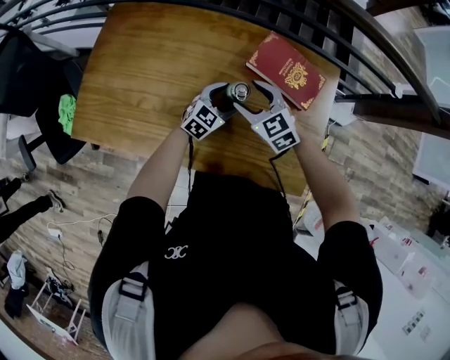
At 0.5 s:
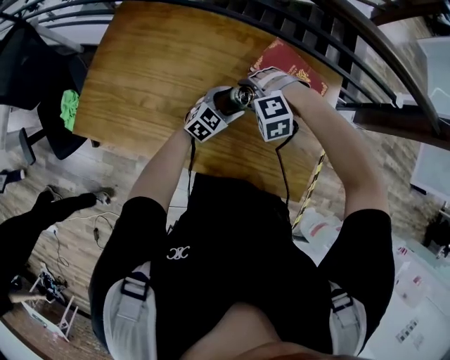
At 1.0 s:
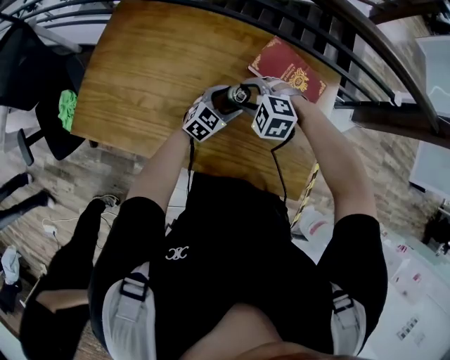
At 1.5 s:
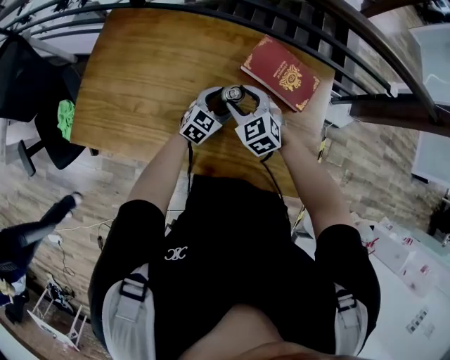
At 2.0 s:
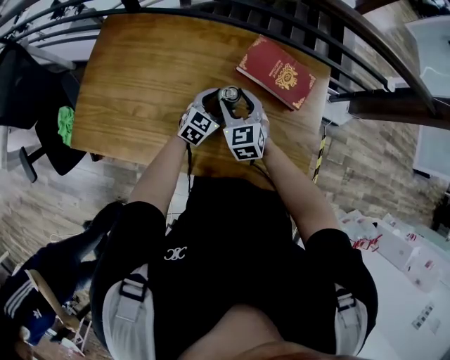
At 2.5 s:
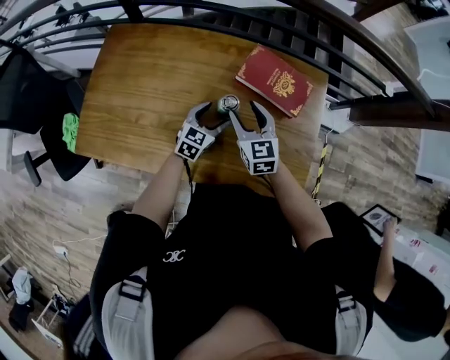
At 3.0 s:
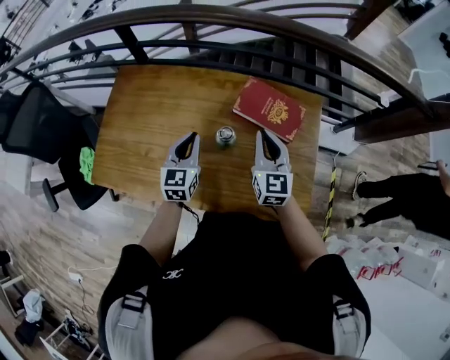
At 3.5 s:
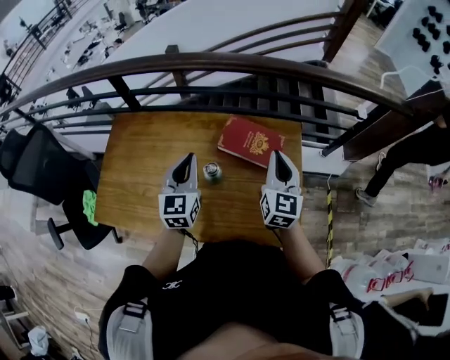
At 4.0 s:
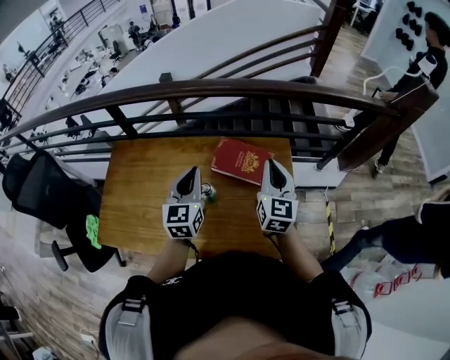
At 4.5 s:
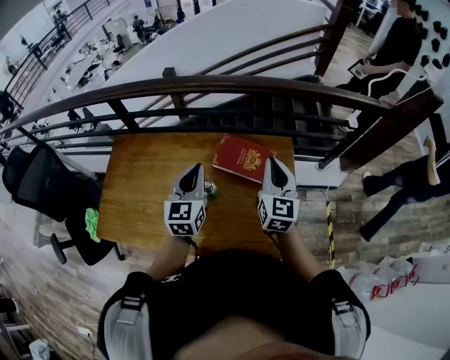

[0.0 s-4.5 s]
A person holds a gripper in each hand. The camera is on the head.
0.0 to 2.0 s: The right gripper changes its angle by some 20 degrees.
2.0 to 4.5 s: The right gripper moves upward and to the right, approximately 30 cm, turns by about 40 degrees, and closes. The left gripper moves upward, some 30 cm, swivels roughly 30 degrees, and closes up.

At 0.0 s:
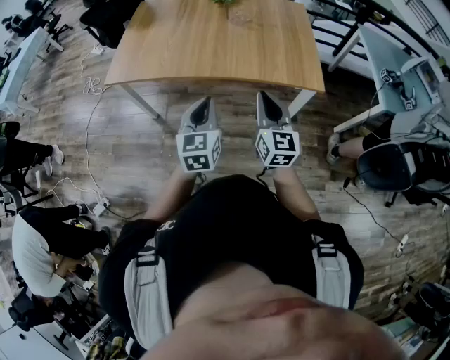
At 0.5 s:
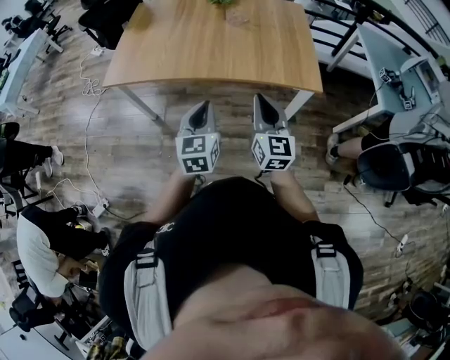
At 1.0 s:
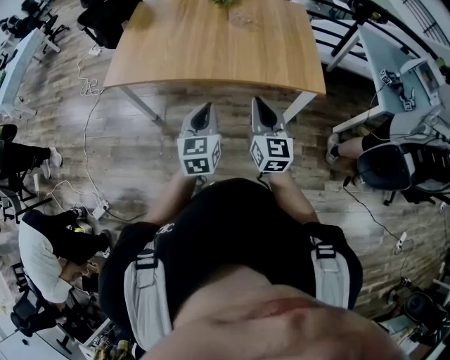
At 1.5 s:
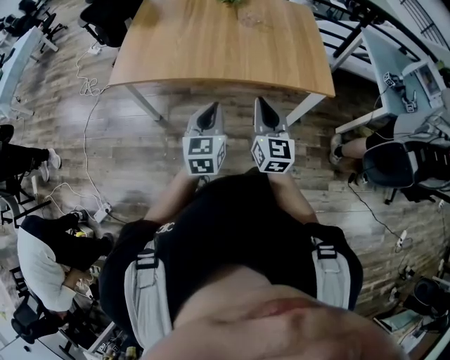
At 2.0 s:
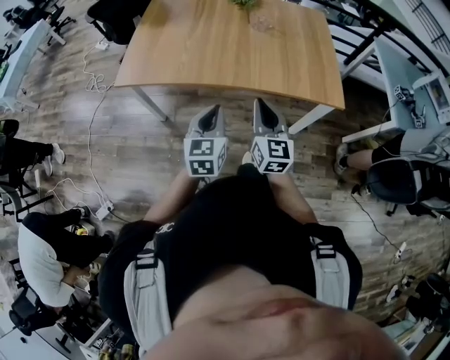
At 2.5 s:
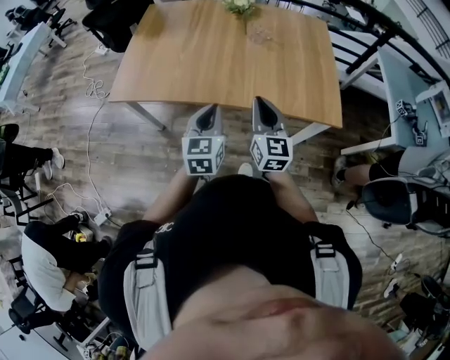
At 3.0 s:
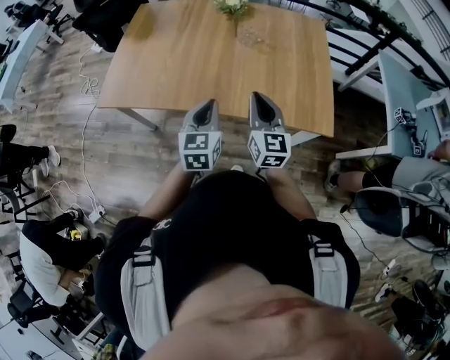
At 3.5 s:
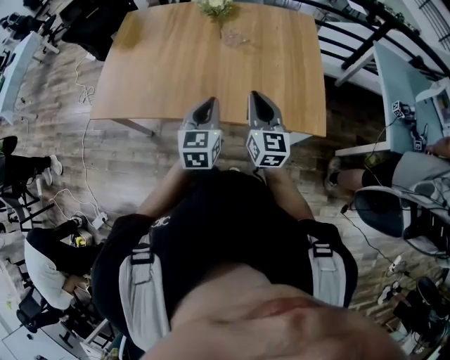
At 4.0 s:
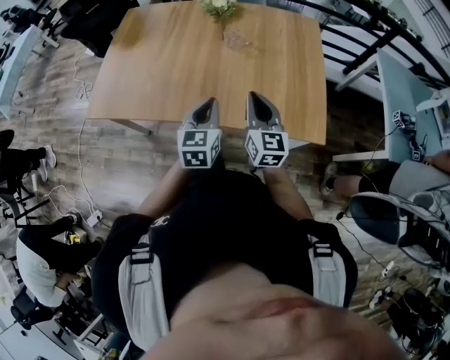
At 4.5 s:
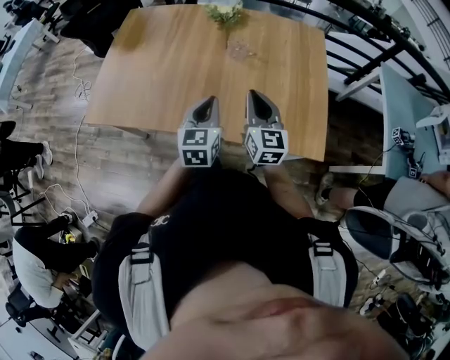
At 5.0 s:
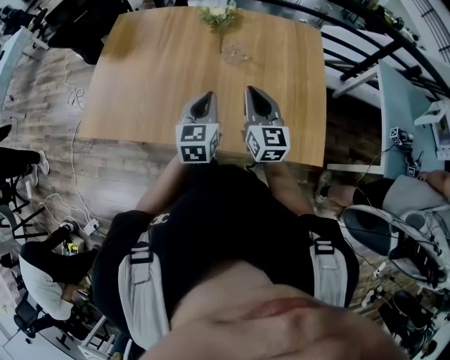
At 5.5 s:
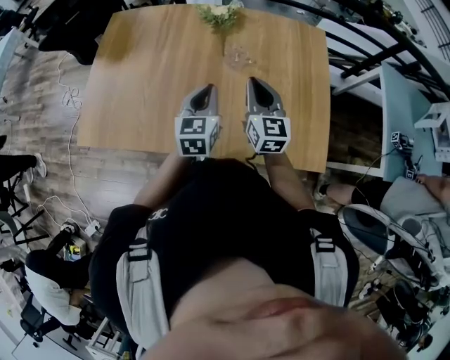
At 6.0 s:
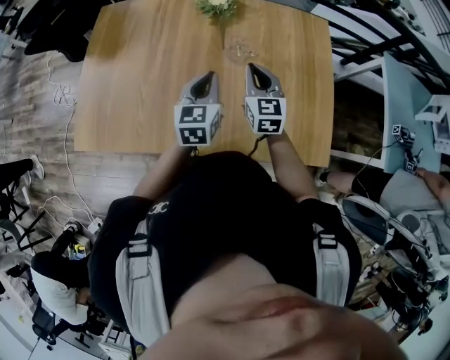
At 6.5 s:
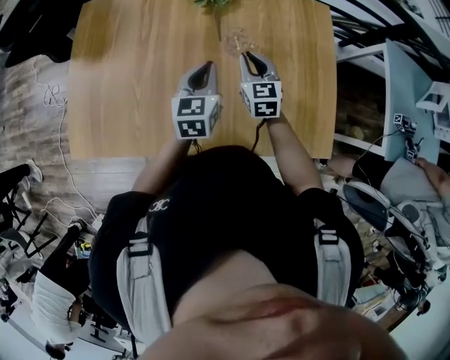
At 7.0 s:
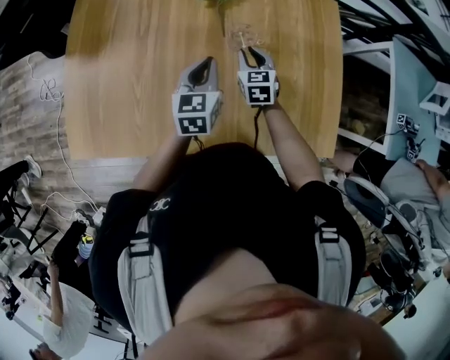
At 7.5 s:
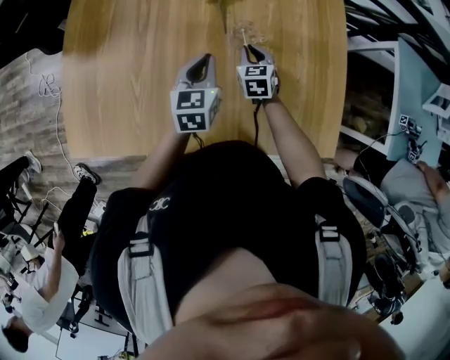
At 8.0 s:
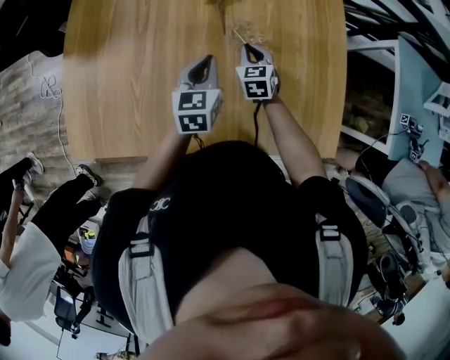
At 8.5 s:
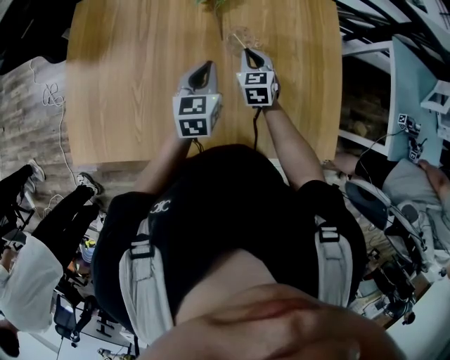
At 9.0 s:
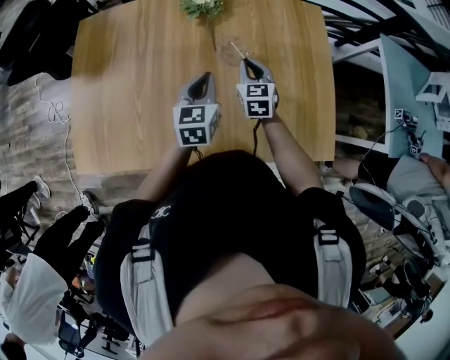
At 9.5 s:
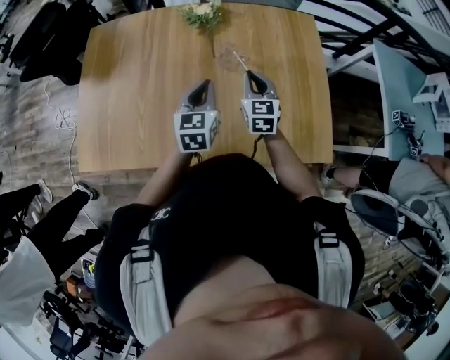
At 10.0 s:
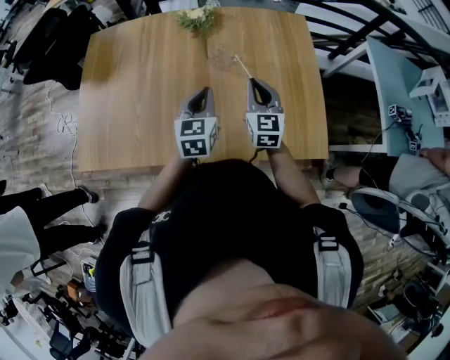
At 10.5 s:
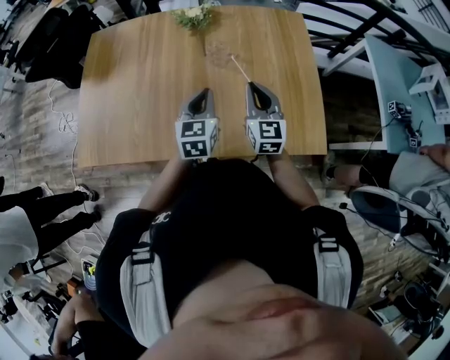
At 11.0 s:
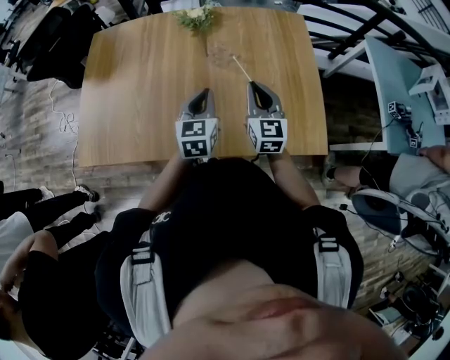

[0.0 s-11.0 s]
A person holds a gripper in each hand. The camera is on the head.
0.0 to 2.0 s: The two grippers go approximately 10 cm to the left and forward.
2.0 to 3.5 s: Both grippers move forward and to the right, approximately 25 cm.
3.5 to 5.5 s: Both grippers move forward, about 25 cm.
5.5 to 7.5 s: The right gripper goes roughly 30 cm downward and forward, and tilts its fingers roughly 30 degrees downward, while the left gripper moves forward and downward, roughly 15 cm.
7.5 to 9.0 s: The right gripper shifts roughly 10 cm upward, while the left gripper changes place by approximately 5 cm.
9.0 to 11.0 s: The left gripper is displaced backward and to the right by roughly 15 cm, while the right gripper shifts approximately 20 cm backward, upward and to the right.

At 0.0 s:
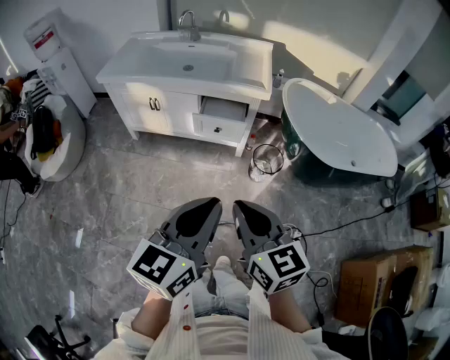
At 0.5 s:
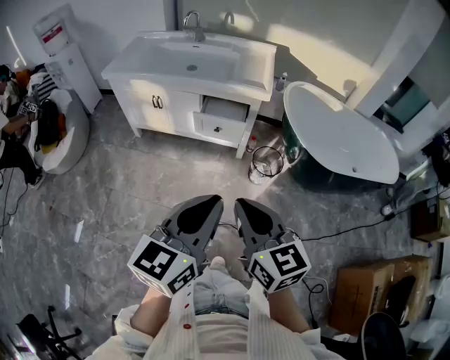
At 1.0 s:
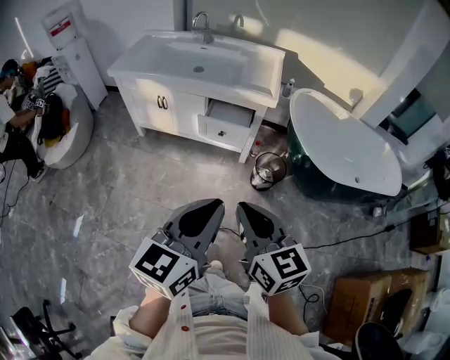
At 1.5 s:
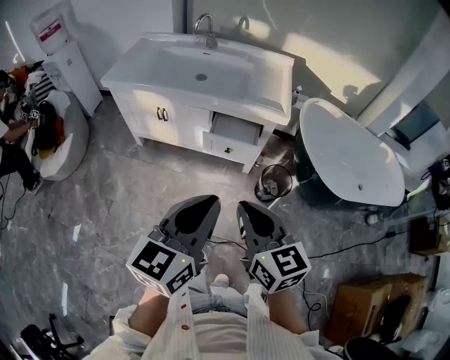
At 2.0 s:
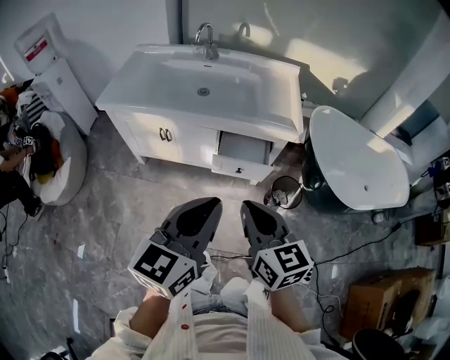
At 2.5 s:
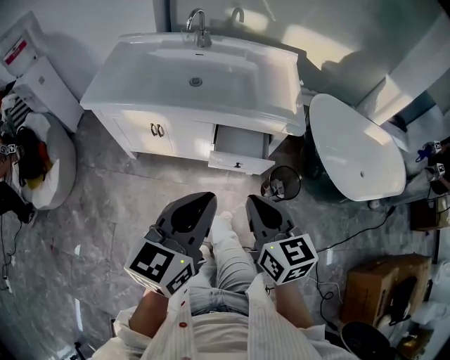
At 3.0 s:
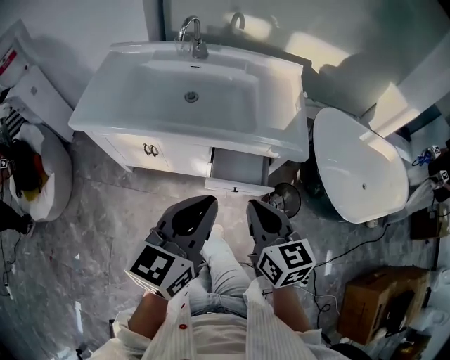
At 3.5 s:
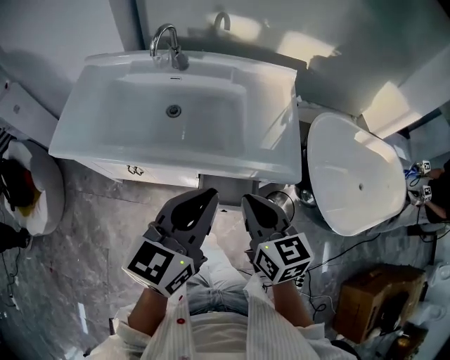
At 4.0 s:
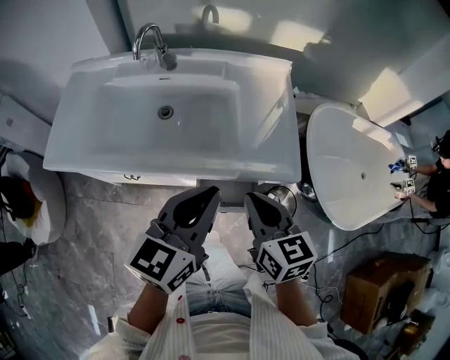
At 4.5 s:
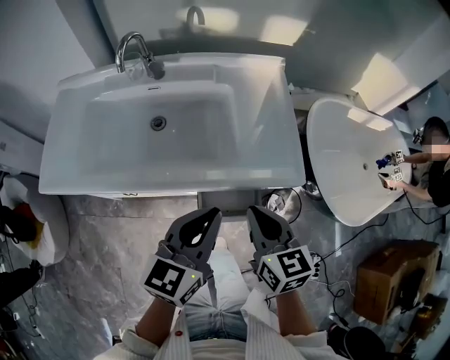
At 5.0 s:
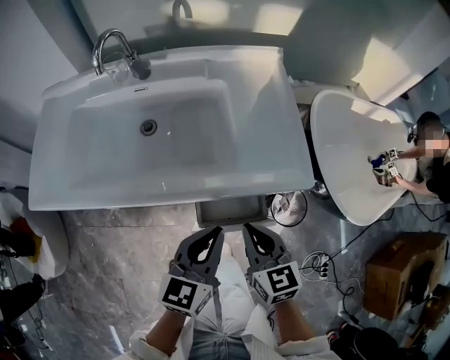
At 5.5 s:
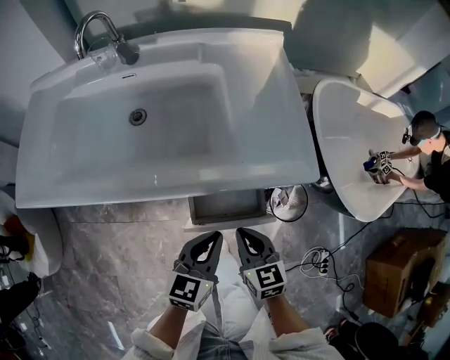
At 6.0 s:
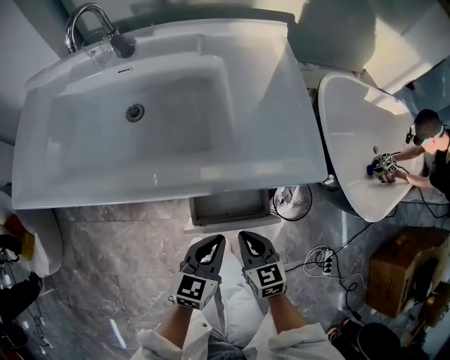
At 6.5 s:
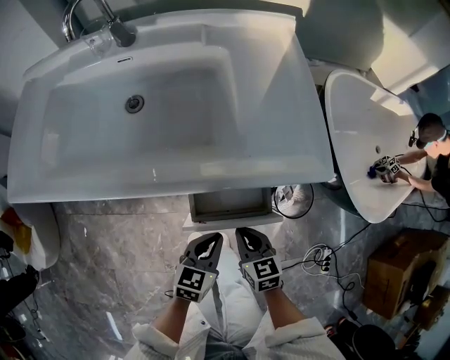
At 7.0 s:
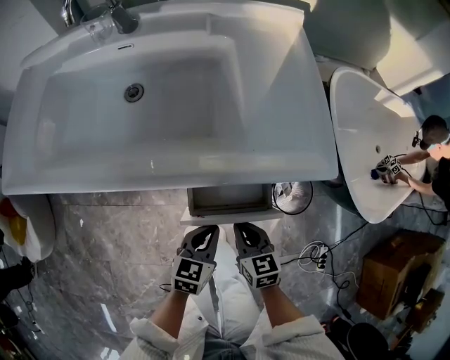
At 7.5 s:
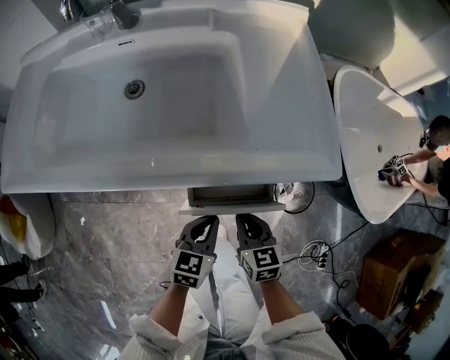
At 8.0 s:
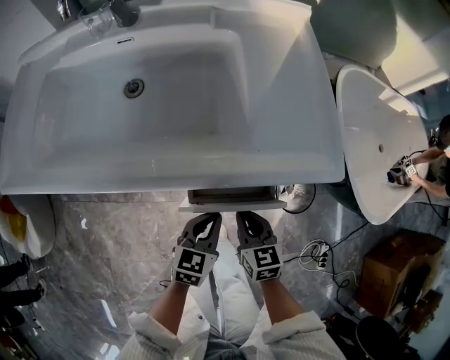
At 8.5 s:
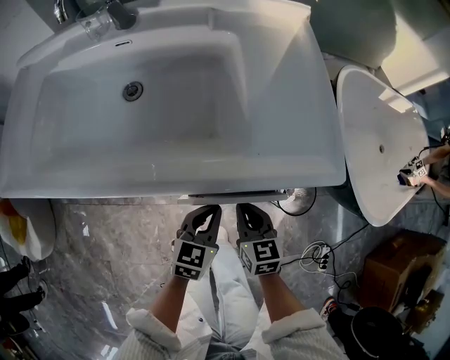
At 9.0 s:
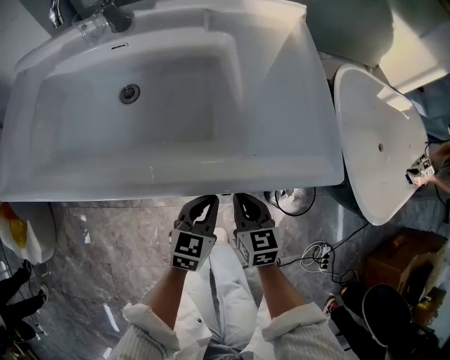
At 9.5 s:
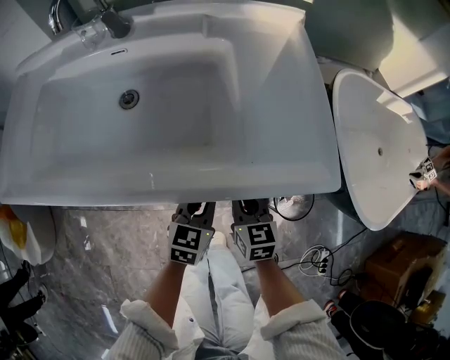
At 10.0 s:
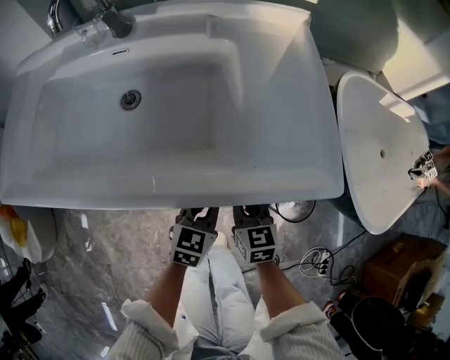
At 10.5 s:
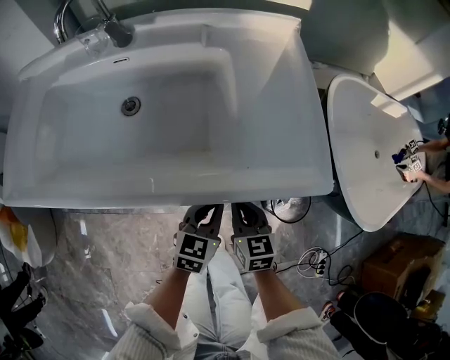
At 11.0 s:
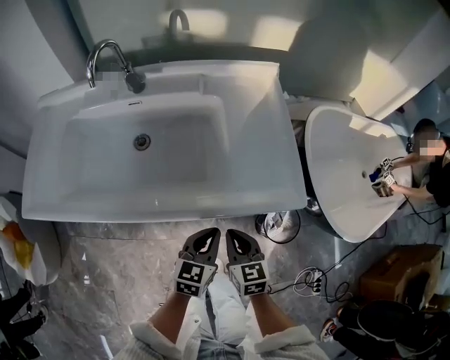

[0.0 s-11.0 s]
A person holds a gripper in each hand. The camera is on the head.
0.0 to 2.0 s: Both grippers travel together forward and to the left, about 25 cm.
2.0 to 3.5 s: The two grippers go roughly 30 cm forward.
3.5 to 5.5 s: The grippers both shift downward by approximately 25 cm.
5.5 to 7.5 s: Both grippers travel together downward, about 10 cm.
7.5 to 9.0 s: The two grippers go about 5 cm forward.
9.0 to 11.0 s: Both grippers travel together upward, some 10 cm.
